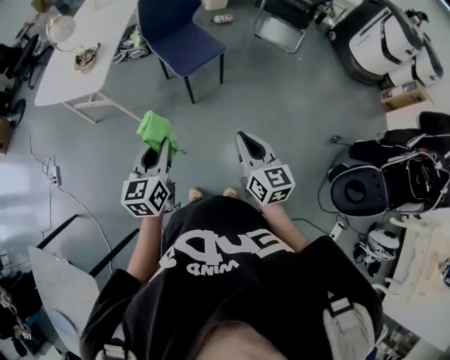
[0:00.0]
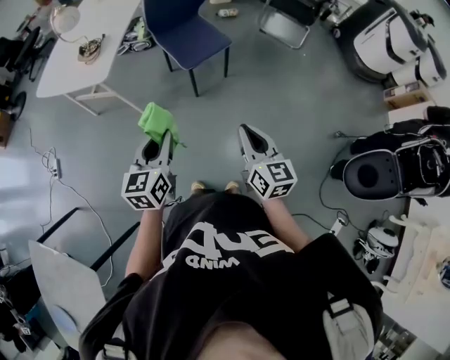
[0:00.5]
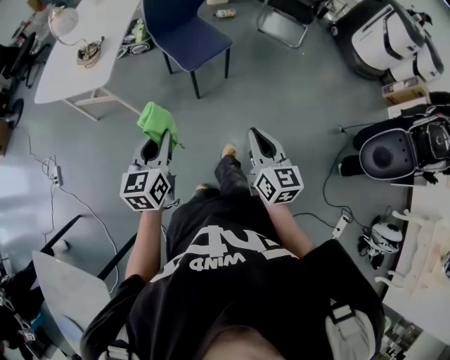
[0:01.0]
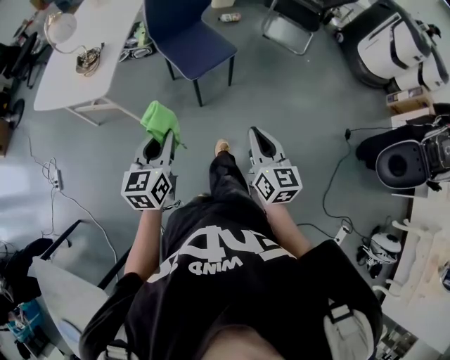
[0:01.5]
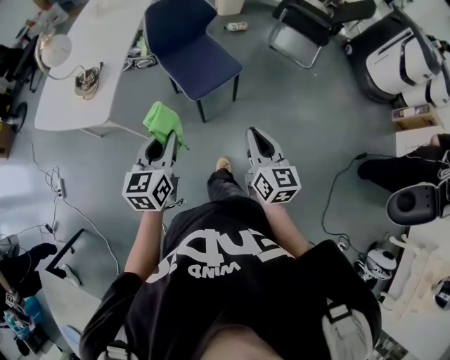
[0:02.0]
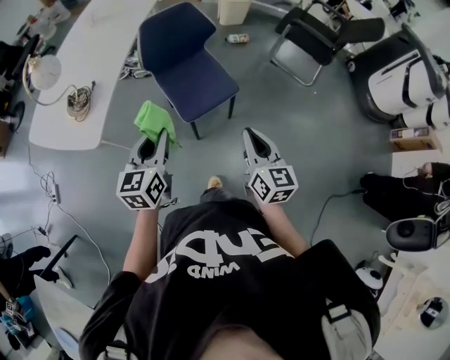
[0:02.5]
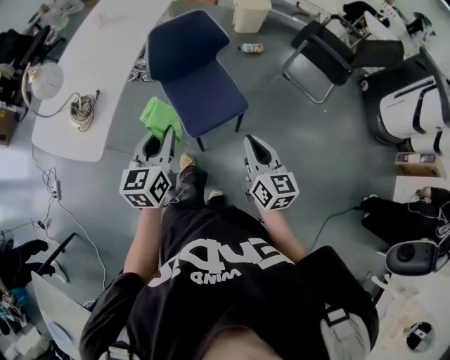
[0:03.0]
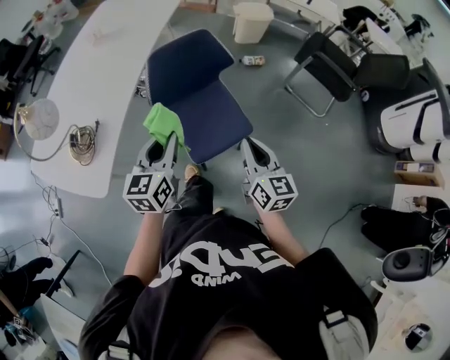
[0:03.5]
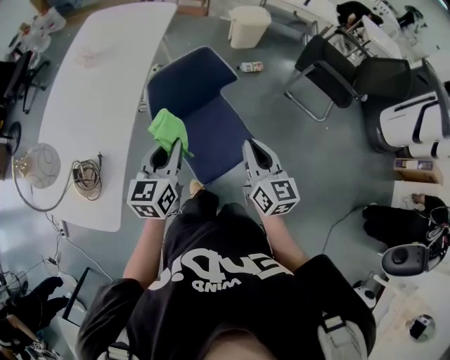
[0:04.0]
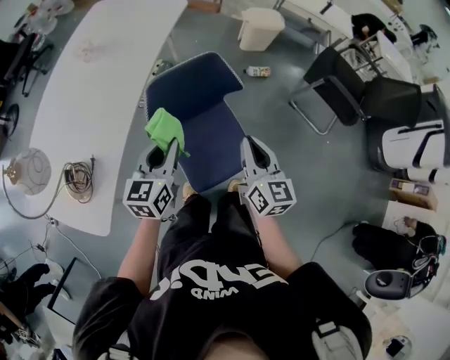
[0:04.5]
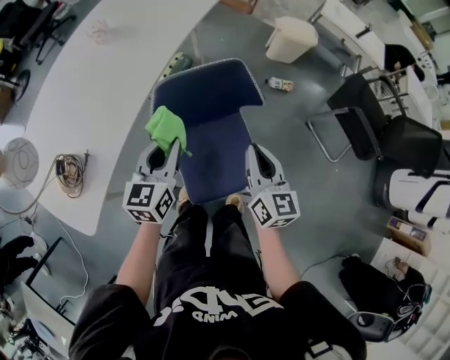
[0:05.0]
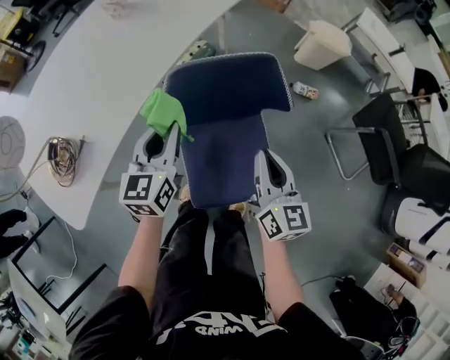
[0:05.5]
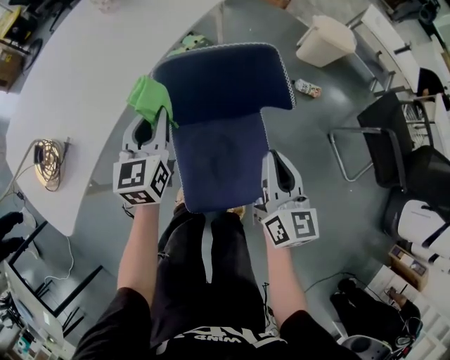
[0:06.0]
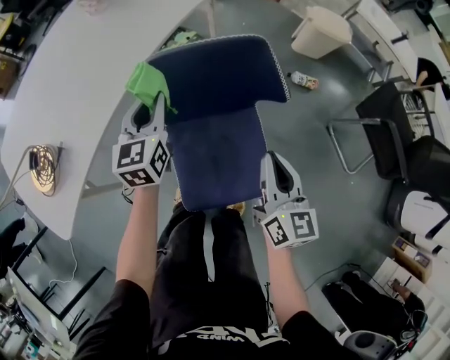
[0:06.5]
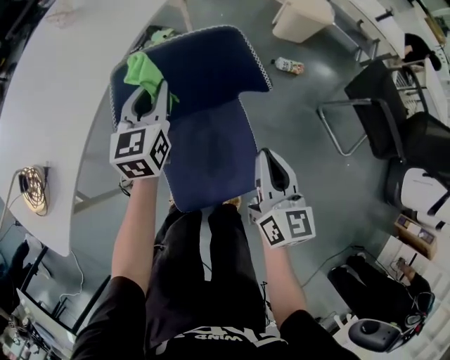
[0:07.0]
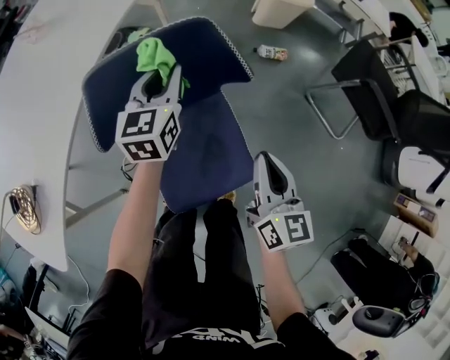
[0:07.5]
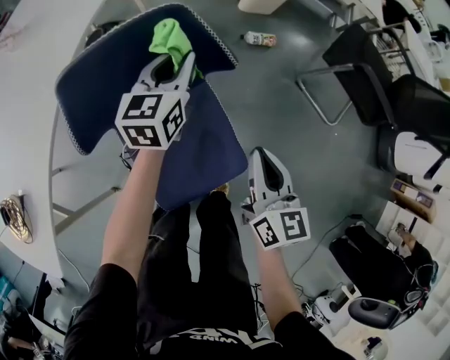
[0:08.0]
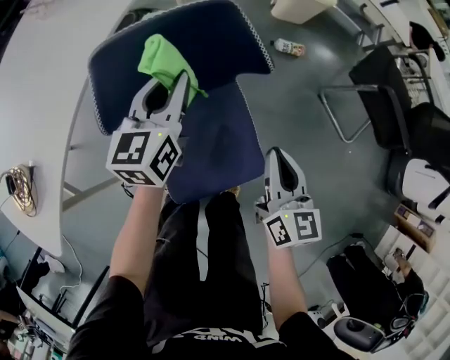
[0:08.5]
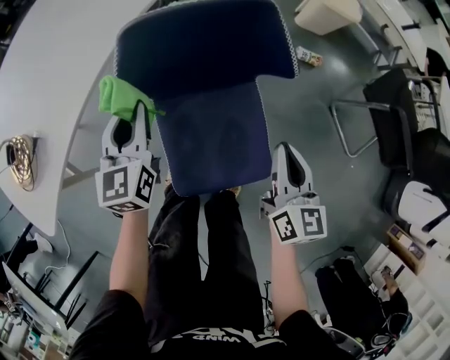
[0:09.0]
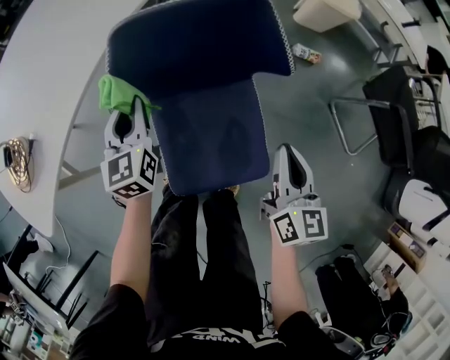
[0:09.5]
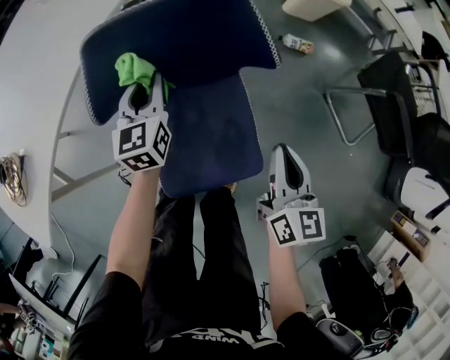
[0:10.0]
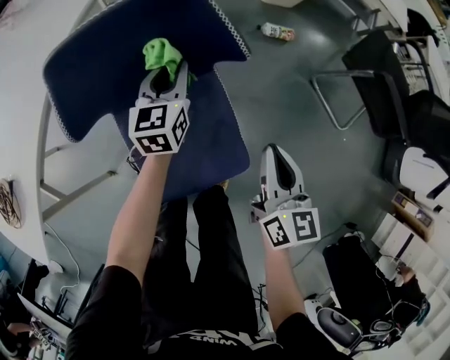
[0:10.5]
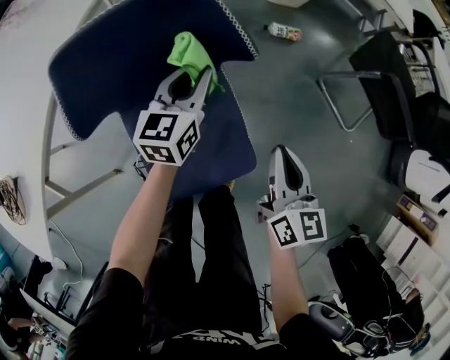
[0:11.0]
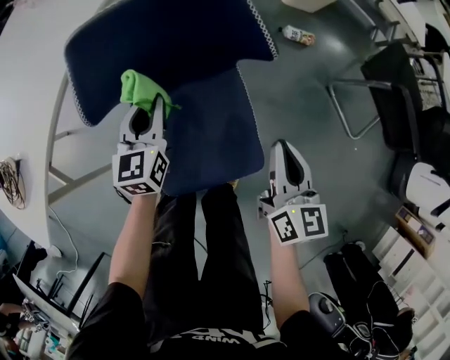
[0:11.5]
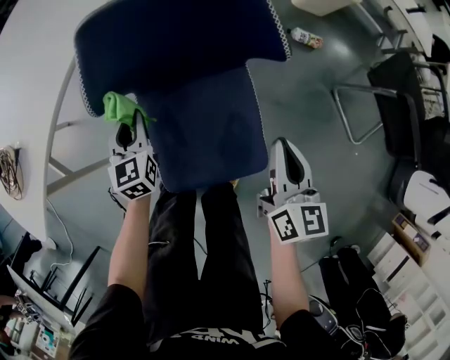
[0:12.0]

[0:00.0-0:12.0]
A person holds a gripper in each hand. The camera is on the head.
0:00.0 to 0:02.0: The grippers both shift forward by approximately 20 cm.
0:02.0 to 0:04.0: Both grippers are carried forward, approximately 50 cm.
0:04.0 to 0:06.0: Both grippers move forward and downward, approximately 25 cm. The left gripper changes its angle by some 30 degrees.
0:06.0 to 0:08.0: The left gripper travels to the right and forward by roughly 25 cm, and swivels approximately 30 degrees; the right gripper heads to the right, covering some 10 cm.
0:08.0 to 0:10.0: The left gripper moves to the left and downward, some 15 cm, and changes its angle by roughly 30 degrees.
0:10.0 to 0:12.0: The left gripper travels backward and downward by approximately 10 cm, and goes to the right and returns, roughly 15 cm each way.

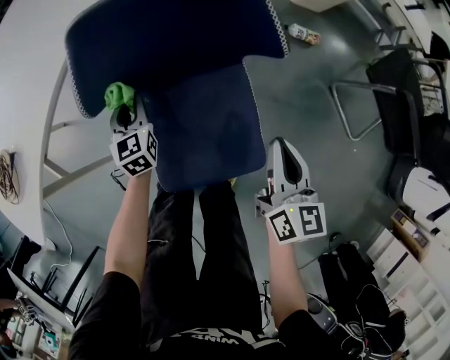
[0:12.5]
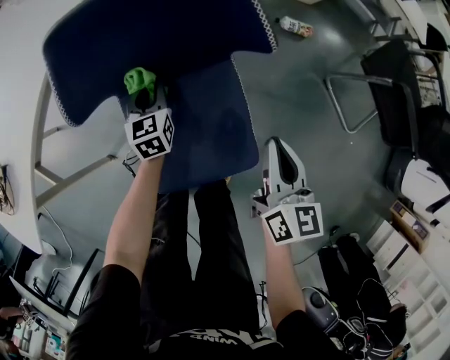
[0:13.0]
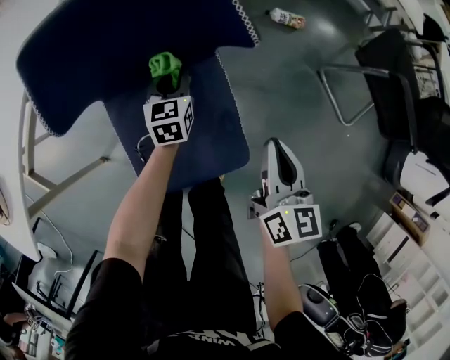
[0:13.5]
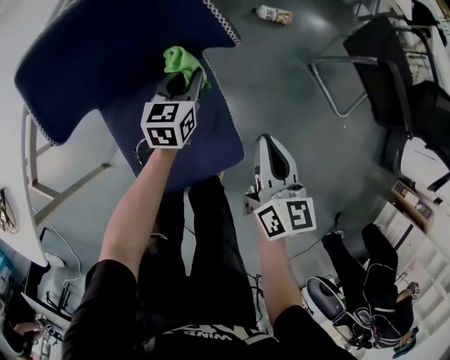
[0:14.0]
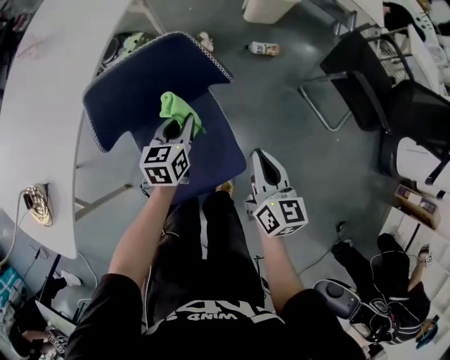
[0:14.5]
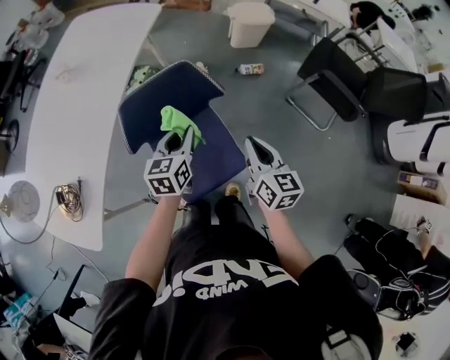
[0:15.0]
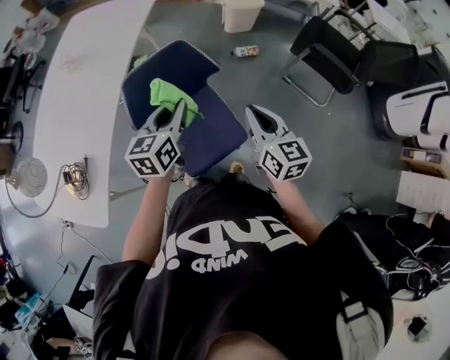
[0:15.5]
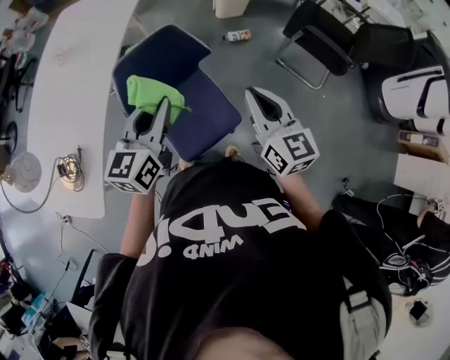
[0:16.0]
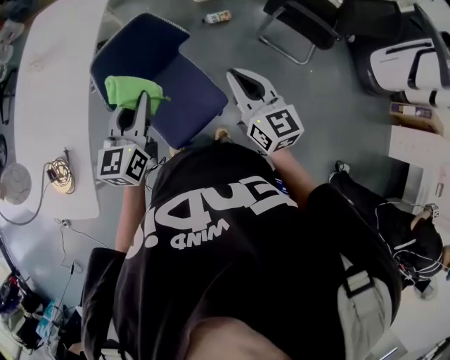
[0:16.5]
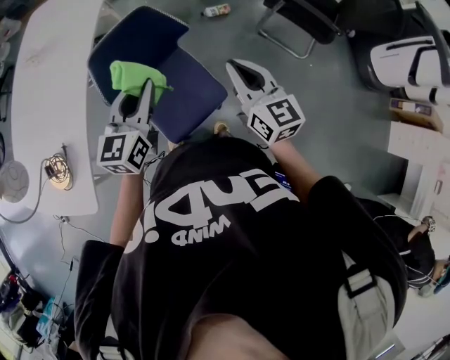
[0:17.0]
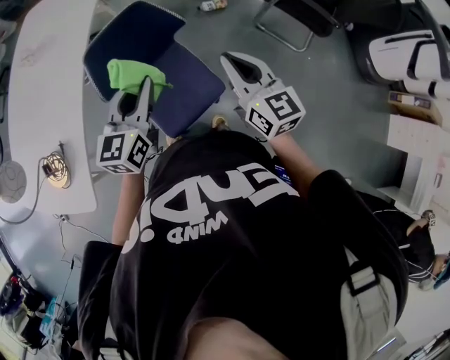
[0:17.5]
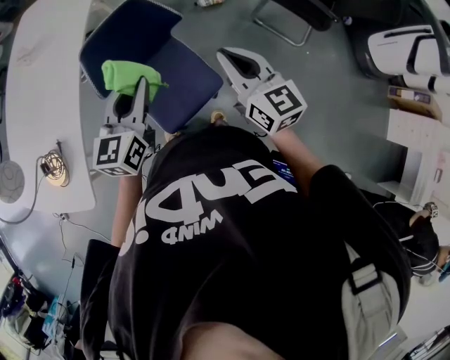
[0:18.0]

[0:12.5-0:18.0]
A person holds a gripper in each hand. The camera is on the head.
0:12.5 to 0:14.5: The right gripper heads upward, covering some 10 cm. The left gripper travels to the right and upward by about 25 cm, and swivels approximately 40 degrees.
0:14.5 to 0:16.0: Both grippers travel together upward and backward, about 30 cm. The left gripper turns by about 30 degrees; the right gripper rotates roughly 20 degrees.
0:16.0 to 0:18.0: The grippers move only a little.

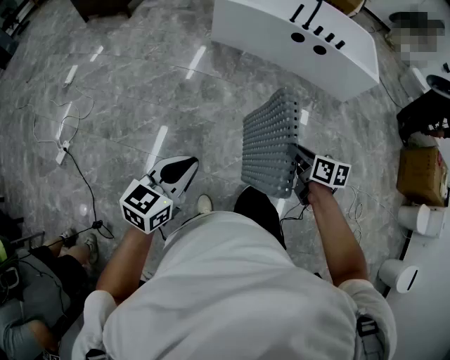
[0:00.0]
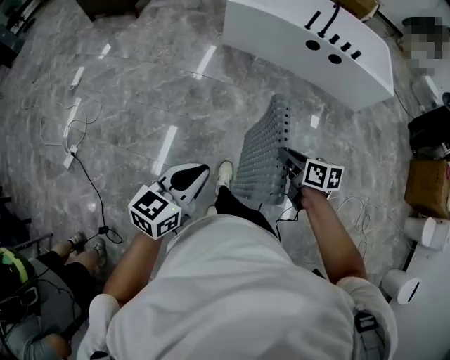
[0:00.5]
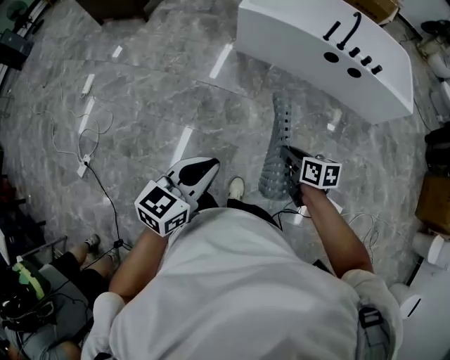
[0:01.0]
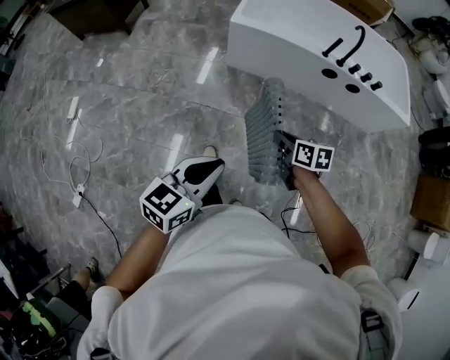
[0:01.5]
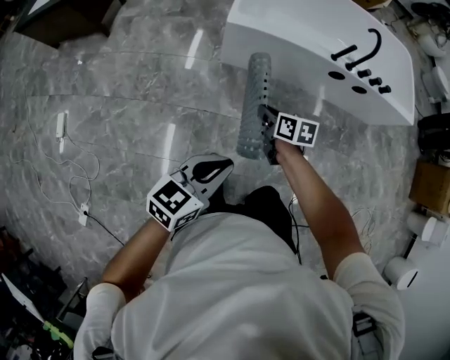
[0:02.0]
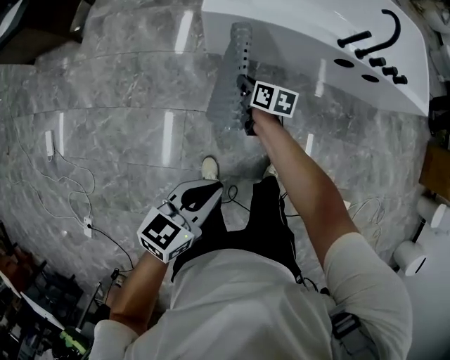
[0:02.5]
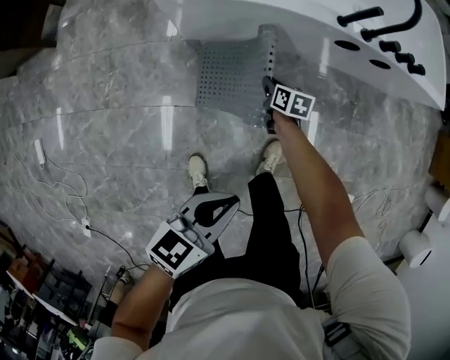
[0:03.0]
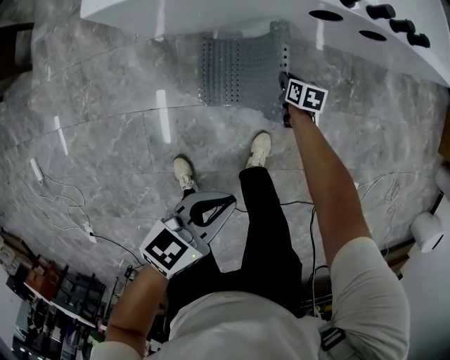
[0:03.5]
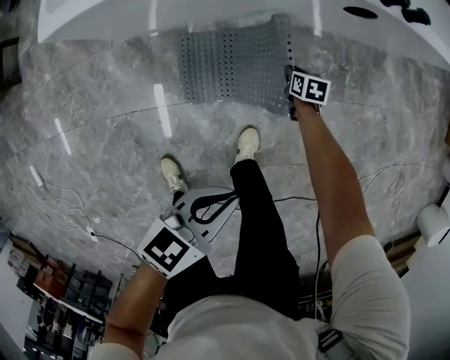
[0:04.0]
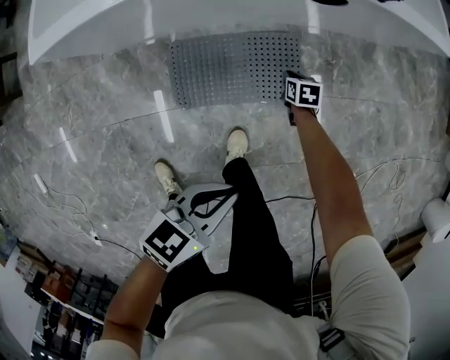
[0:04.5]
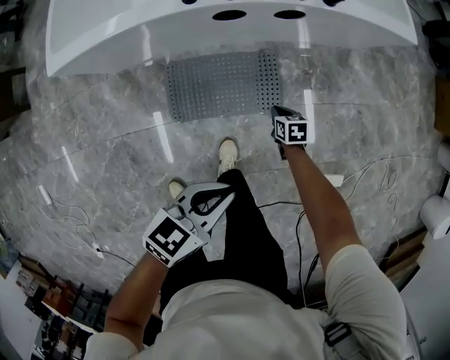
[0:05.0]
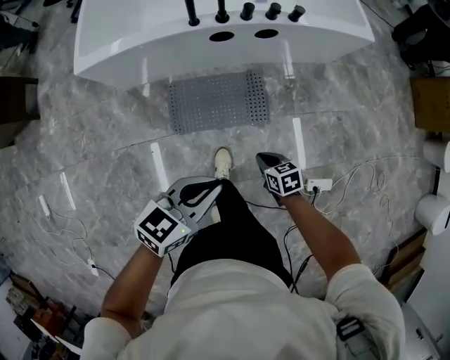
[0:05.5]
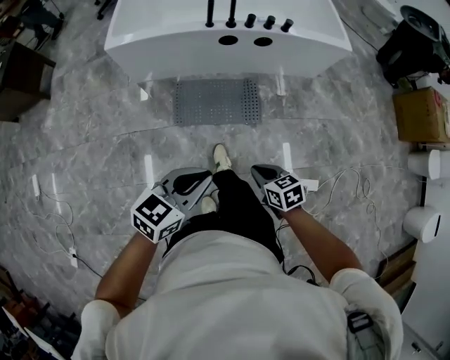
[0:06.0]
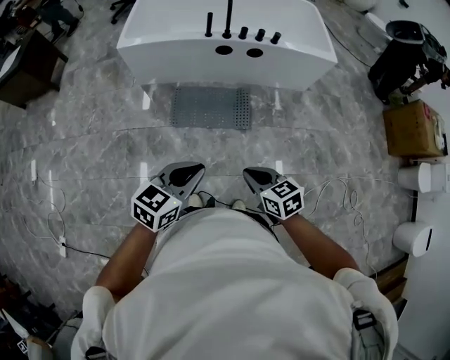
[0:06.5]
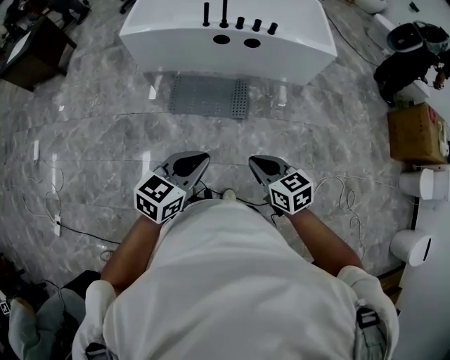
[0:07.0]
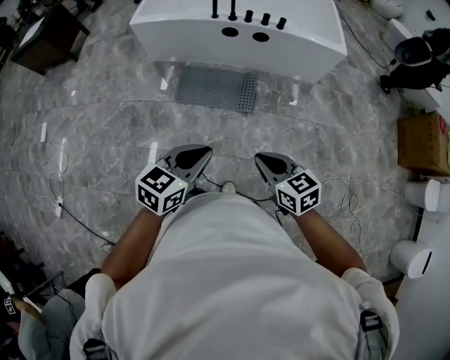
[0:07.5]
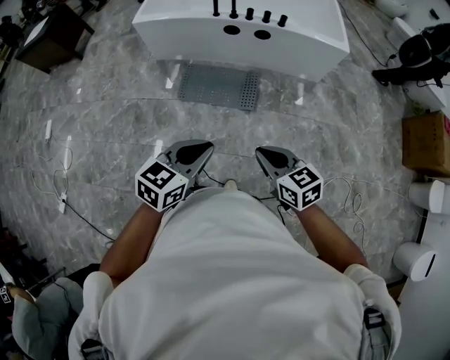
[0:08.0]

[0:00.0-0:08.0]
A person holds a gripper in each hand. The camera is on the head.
0:00.0 to 0:02.0: Both grippers are carried forward, roughly 70 cm.
0:02.0 to 0:04.0: The left gripper shifts by some 50 cm, and turns by some 30 degrees; the right gripper moves some 70 cm, and changes its angle by about 30 degrees.
0:04.0 to 0:06.0: The right gripper travels backward and upward by approximately 60 cm, and rotates about 30 degrees. The left gripper goes some 35 cm upward, backward and to the right, and changes its angle by about 20 degrees.
0:06.0 to 0:08.0: The left gripper shifts about 25 cm to the right and backward. Meanwhile the right gripper is displaced upward, to the right and backward by about 30 cm, and rotates some 20 degrees.

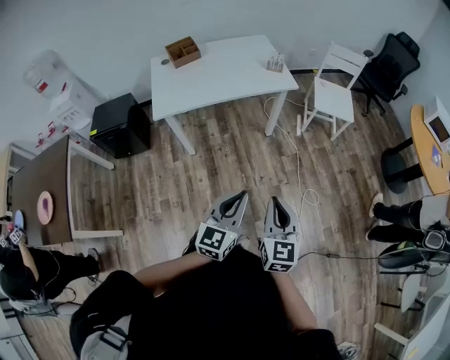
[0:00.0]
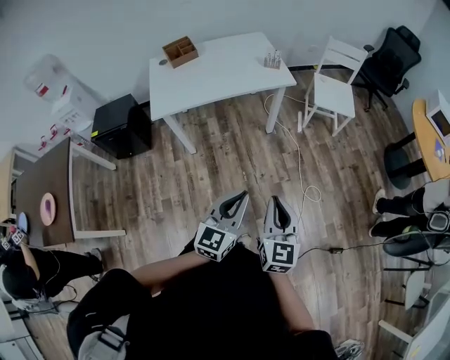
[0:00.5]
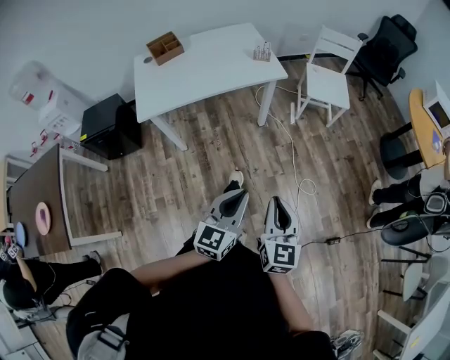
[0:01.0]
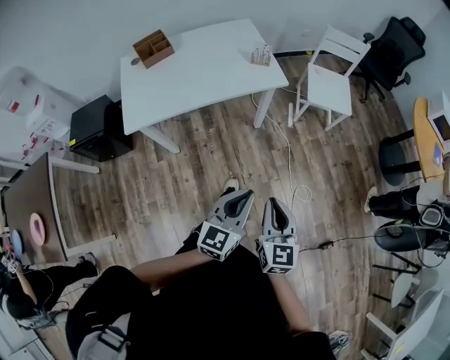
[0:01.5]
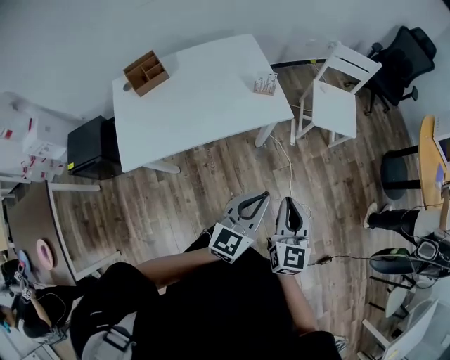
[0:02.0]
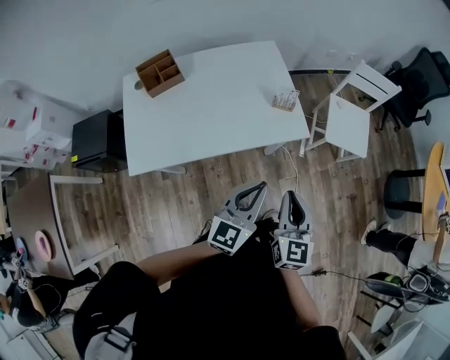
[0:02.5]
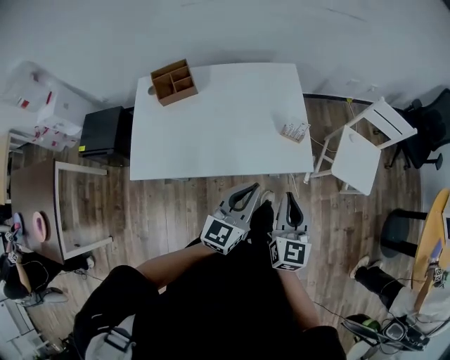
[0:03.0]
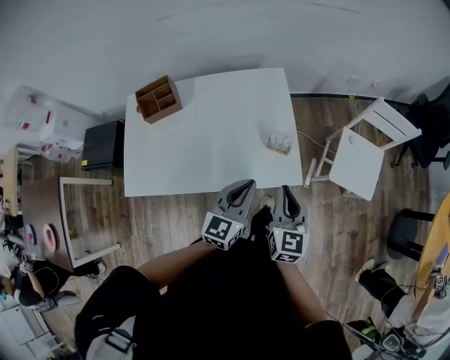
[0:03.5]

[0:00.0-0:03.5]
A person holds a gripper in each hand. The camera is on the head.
0:00.0 to 0:02.0: Both grippers travel together forward, some 35 cm.
0:02.0 to 0:03.5: The two grippers go some 30 cm forward. The left gripper changes its angle by roughly 20 degrees.
